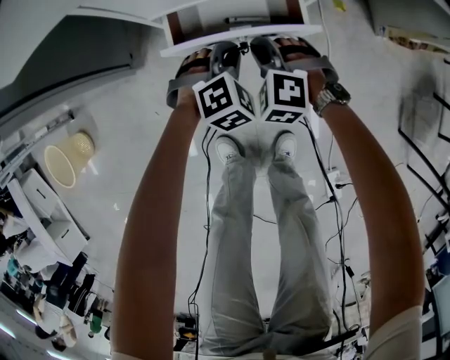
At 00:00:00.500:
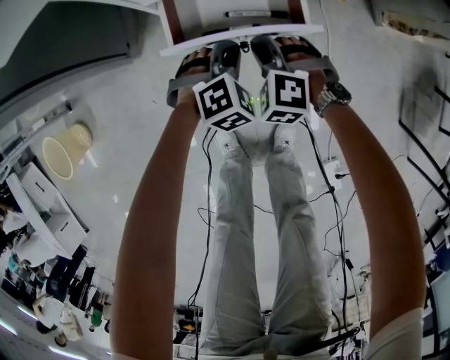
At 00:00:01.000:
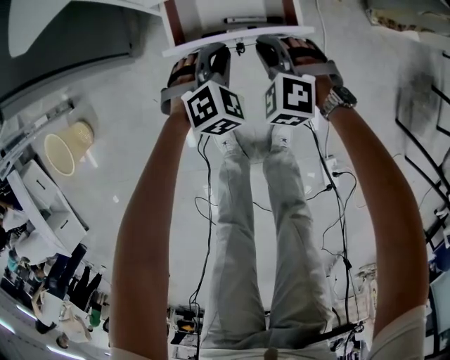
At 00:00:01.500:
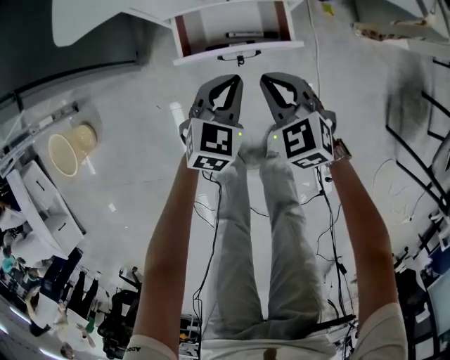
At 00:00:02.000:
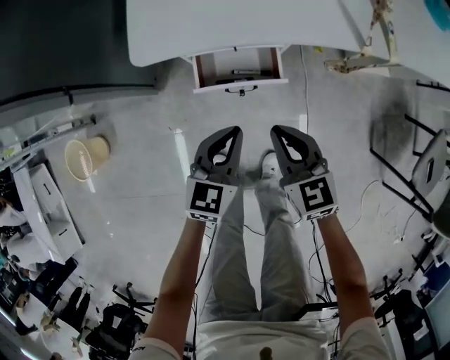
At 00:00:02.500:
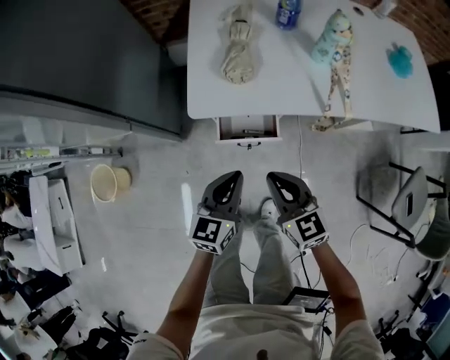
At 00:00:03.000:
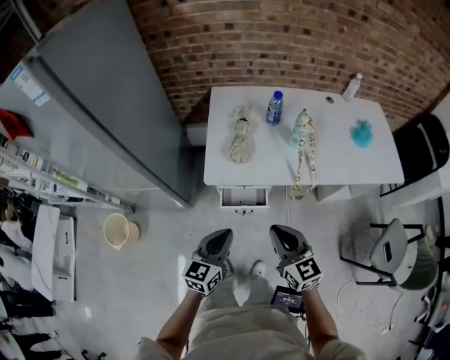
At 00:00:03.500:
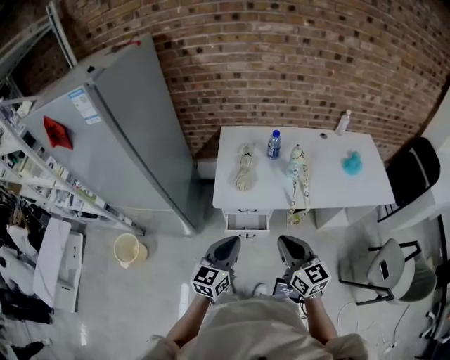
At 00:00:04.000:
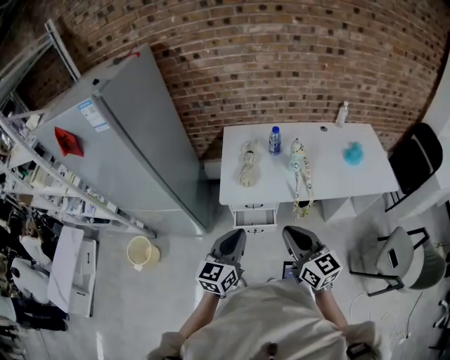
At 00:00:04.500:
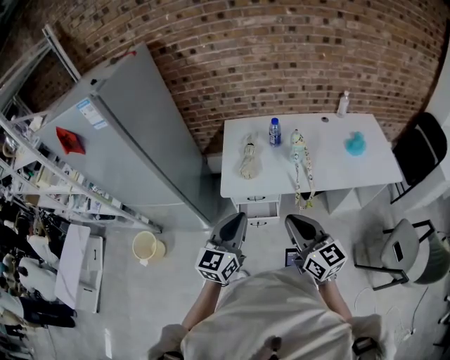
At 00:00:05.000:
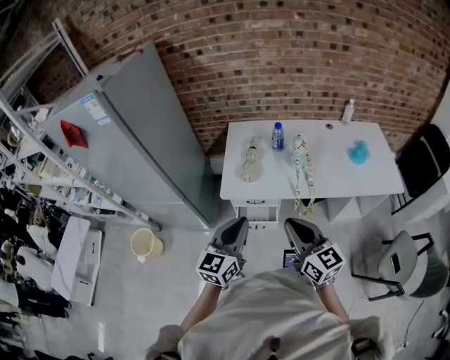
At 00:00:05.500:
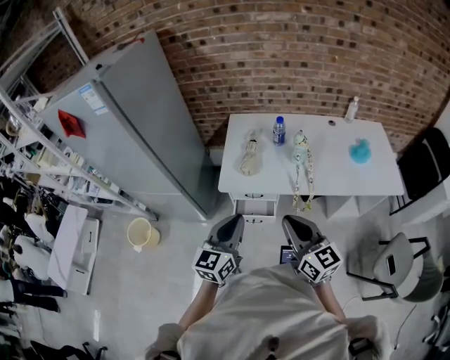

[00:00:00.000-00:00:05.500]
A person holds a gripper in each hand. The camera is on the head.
00:00:00.000 to 00:00:02.000: The left gripper travels upward and backward by roughly 30 cm, and twists some 50 degrees counterclockwise, seen from behind. Meanwhile the right gripper moves upward, approximately 30 cm, and twists about 60 degrees clockwise, seen from behind.
00:00:02.000 to 00:00:03.500: The grippers both shift upward by about 40 cm. The right gripper turns by some 20 degrees.
00:00:03.500 to 00:00:05.500: Both grippers move upward, roughly 5 cm.

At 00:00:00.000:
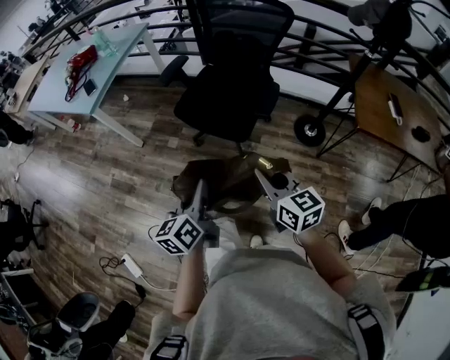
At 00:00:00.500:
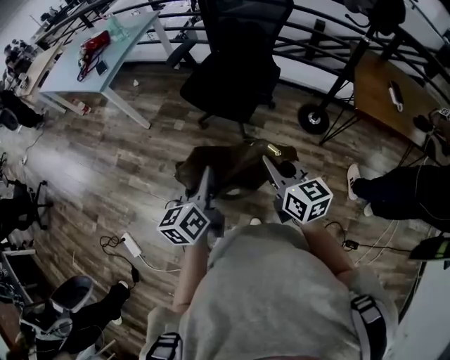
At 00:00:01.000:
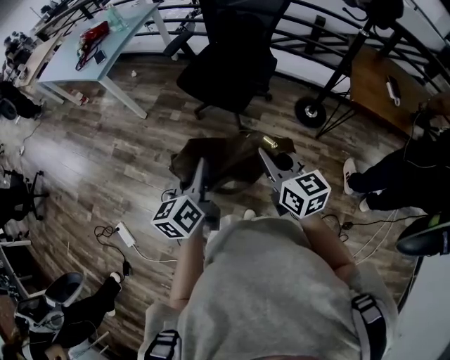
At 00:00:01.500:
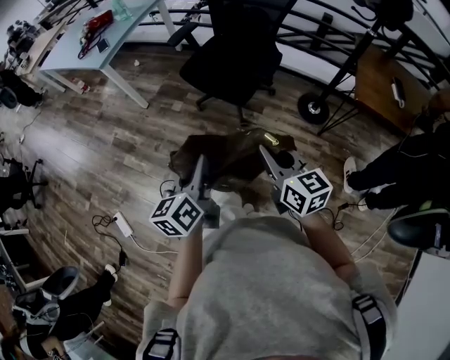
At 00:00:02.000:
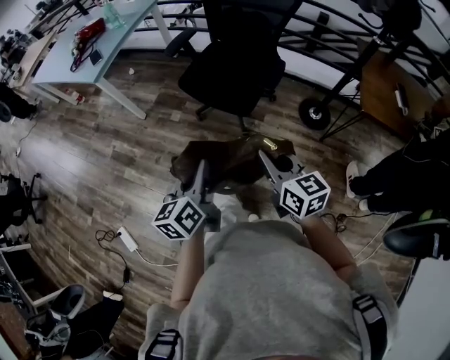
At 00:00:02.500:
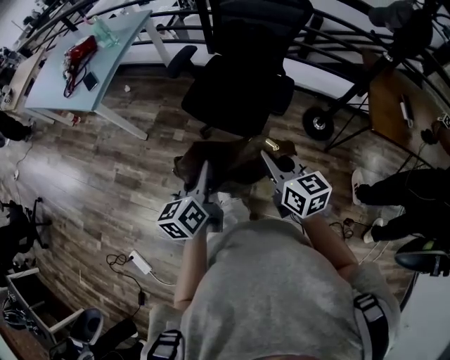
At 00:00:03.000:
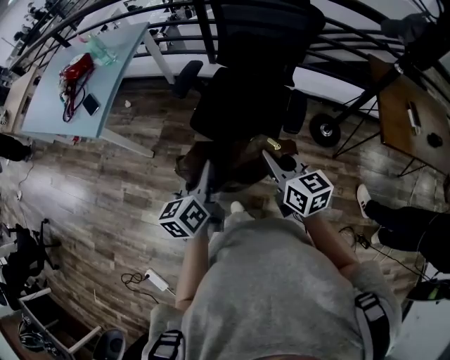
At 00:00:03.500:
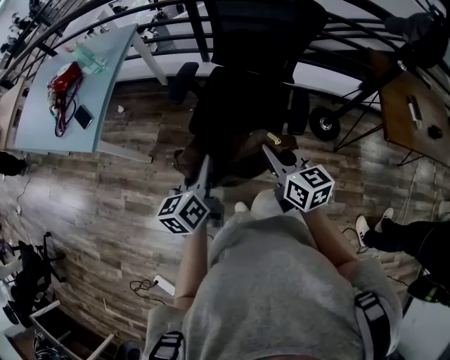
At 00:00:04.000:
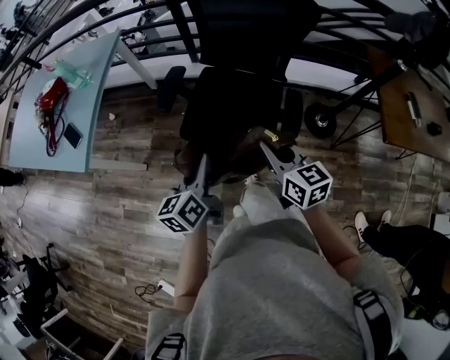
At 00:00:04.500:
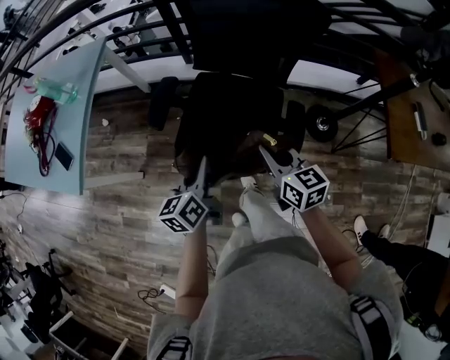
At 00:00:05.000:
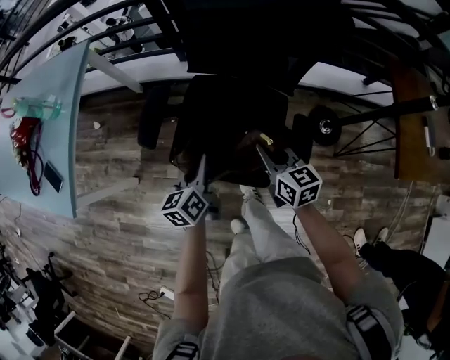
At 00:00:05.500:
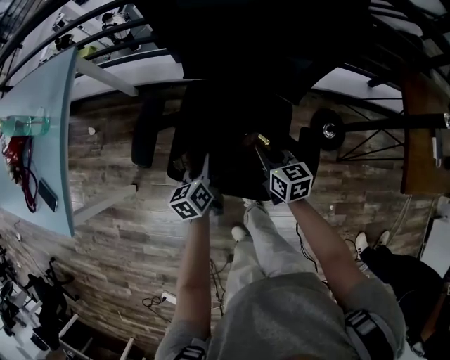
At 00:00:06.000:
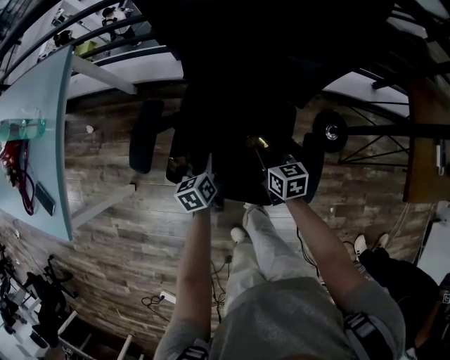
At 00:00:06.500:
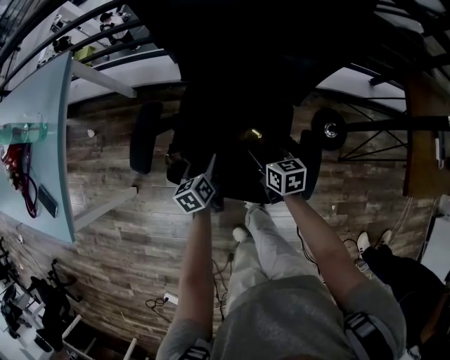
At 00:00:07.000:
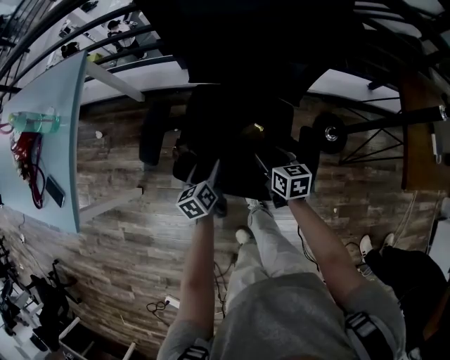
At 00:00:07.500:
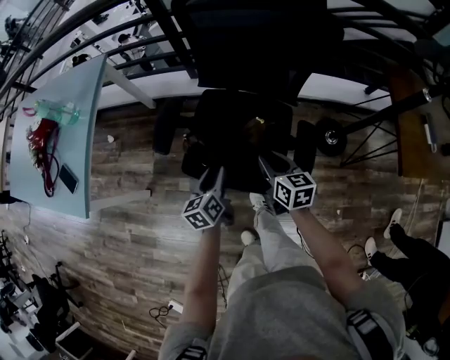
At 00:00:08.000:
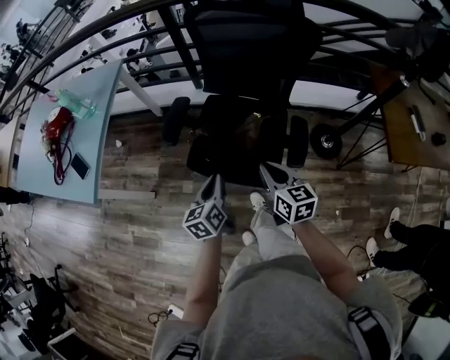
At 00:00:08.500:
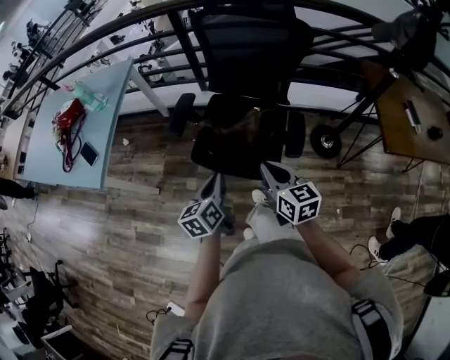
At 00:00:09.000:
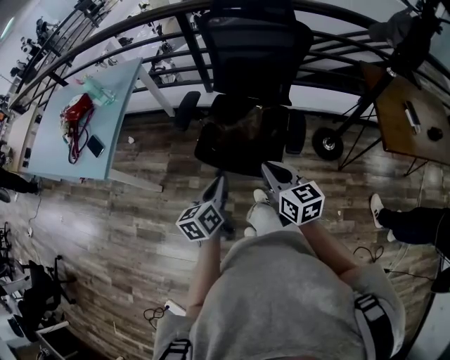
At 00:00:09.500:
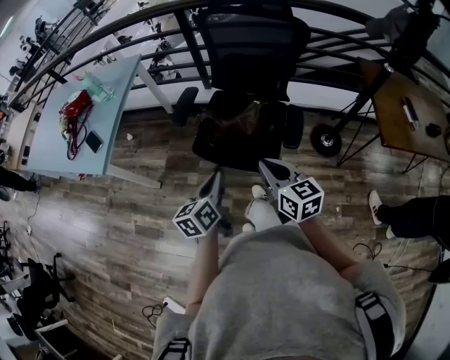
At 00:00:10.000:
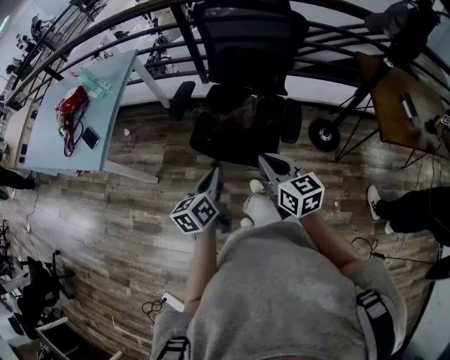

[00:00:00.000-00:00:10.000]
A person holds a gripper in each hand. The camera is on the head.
00:00:00.000 to 00:00:02.000: The grippers both shift backward by approximately 5 cm.
00:00:02.000 to 00:00:04.000: The grippers both shift forward by some 40 cm.
00:00:04.000 to 00:00:06.000: Both grippers travel together downward and forward, about 40 cm. The left gripper changes its angle by roughly 30 degrees. Meanwhile the right gripper changes its angle by approximately 20 degrees.
00:00:06.000 to 00:00:08.000: Both grippers travel together upward and backward, about 30 cm. The left gripper opens, then closes again. The right gripper opens, then closes once more.
00:00:08.000 to 00:00:10.000: Both grippers move backward and upward, about 15 cm.

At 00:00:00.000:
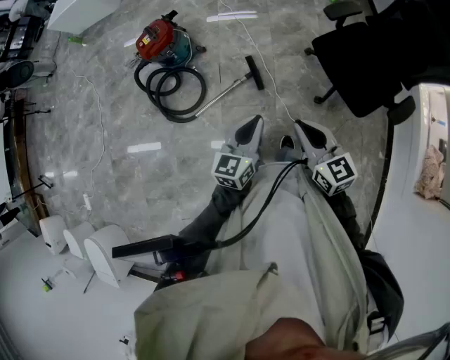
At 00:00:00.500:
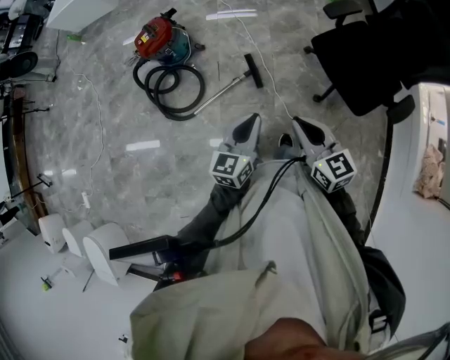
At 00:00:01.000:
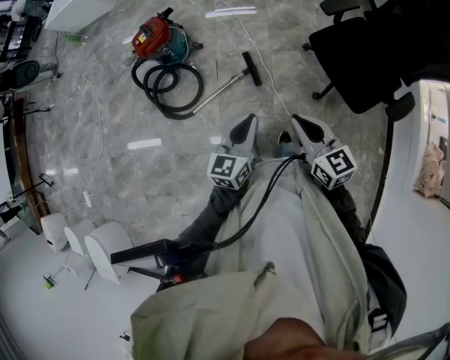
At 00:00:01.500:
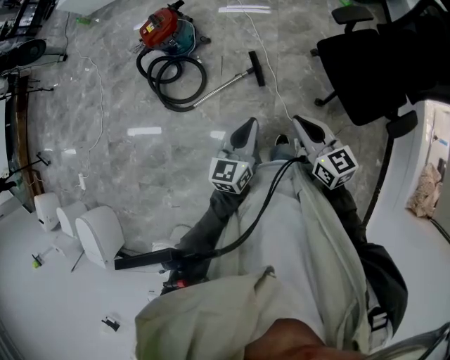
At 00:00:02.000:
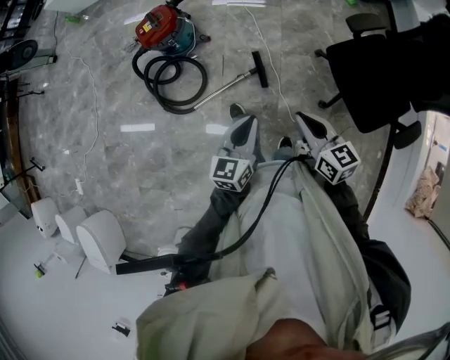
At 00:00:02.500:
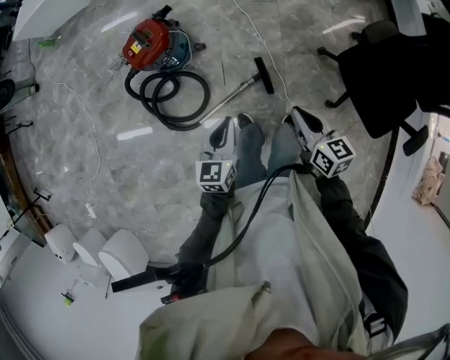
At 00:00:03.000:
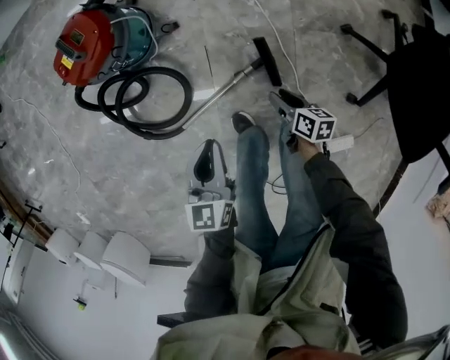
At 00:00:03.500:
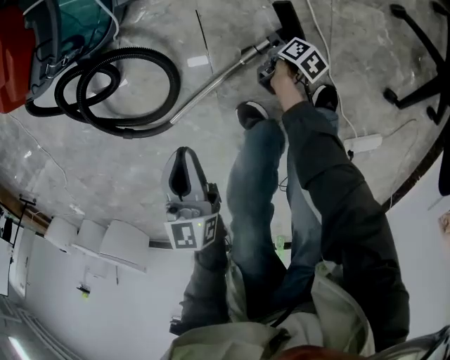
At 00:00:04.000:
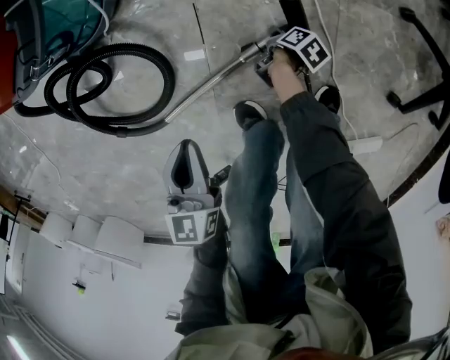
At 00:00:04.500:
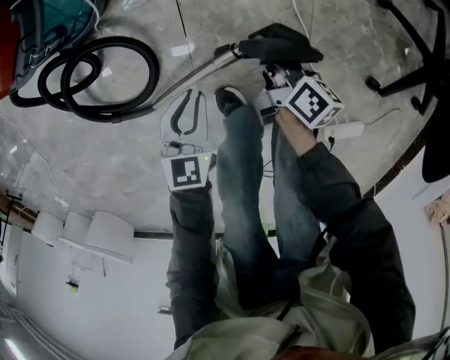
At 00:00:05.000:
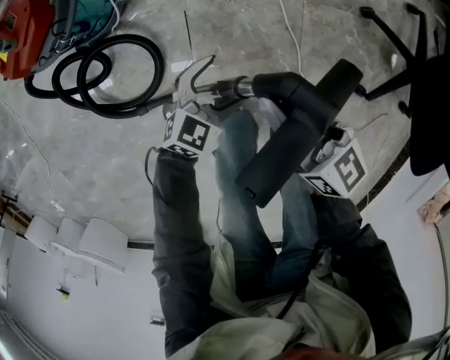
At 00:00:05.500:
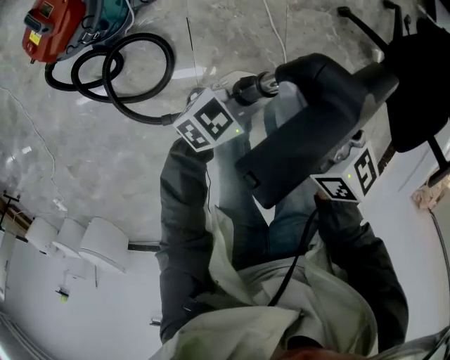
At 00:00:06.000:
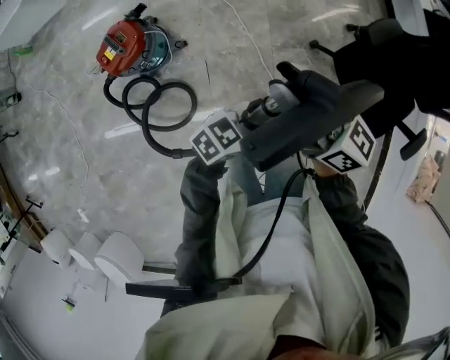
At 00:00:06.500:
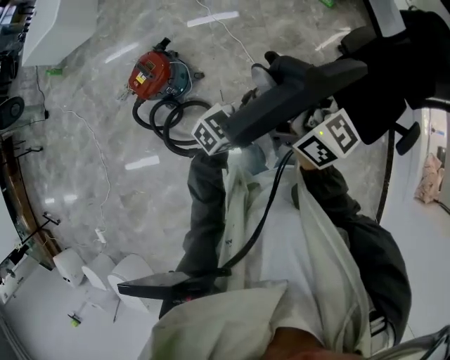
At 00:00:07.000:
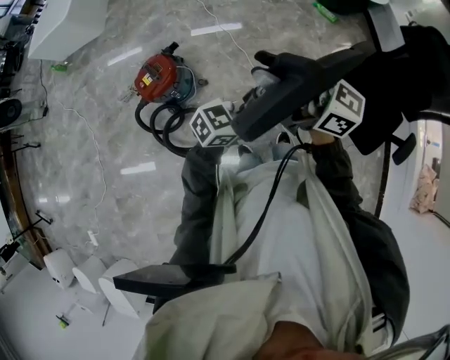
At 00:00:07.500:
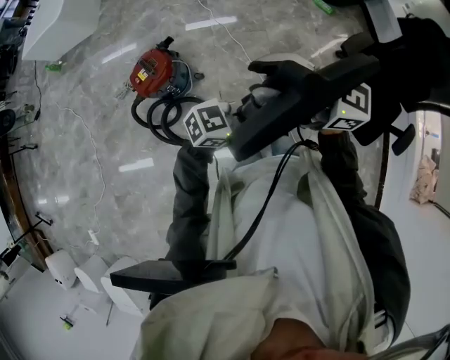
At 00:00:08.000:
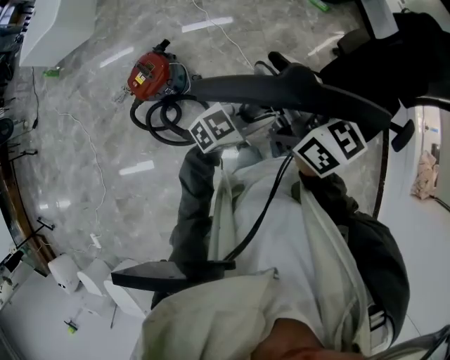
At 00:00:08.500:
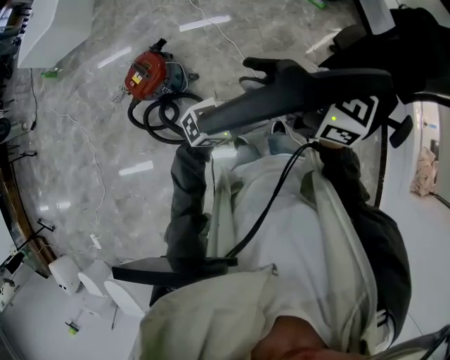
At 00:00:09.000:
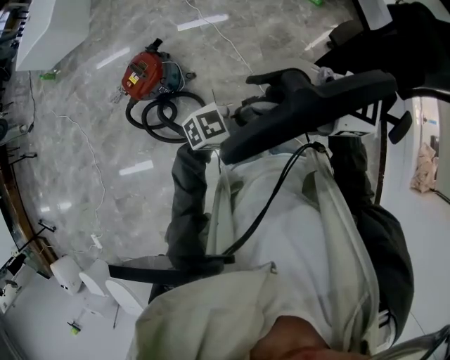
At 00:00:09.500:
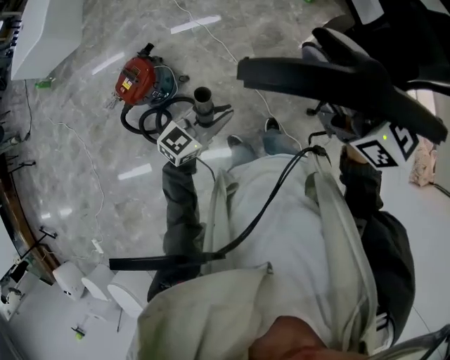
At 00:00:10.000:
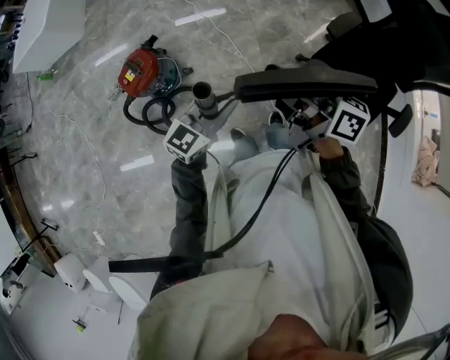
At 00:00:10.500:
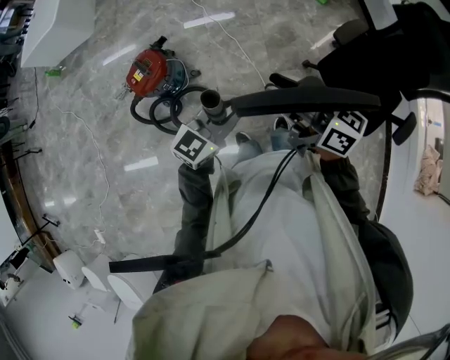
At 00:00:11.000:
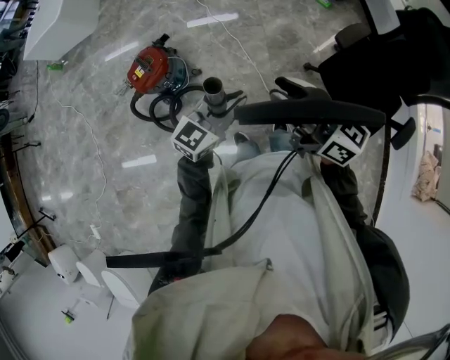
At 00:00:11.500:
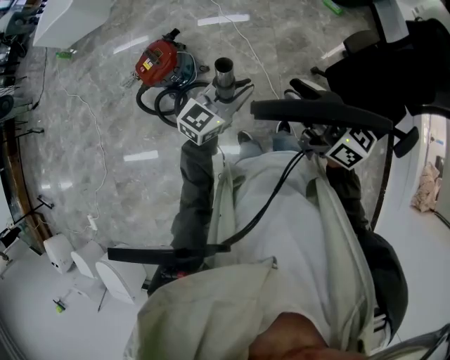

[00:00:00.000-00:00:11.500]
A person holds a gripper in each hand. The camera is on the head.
00:00:00.000 to 00:00:02.000: The right gripper heads forward and downward, covering approximately 10 cm; the left gripper heads forward, covering about 5 cm.
00:00:02.000 to 00:00:04.000: The left gripper shifts roughly 50 cm downward, and rotates some 20 degrees; the right gripper travels downward by about 90 cm, angles its fingers downward, by about 50 degrees, and opens.
00:00:04.000 to 00:00:06.000: The right gripper travels upward by some 90 cm, and tips its fingers upward by approximately 80 degrees, while the left gripper heads upward, covering about 40 cm, swivels roughly 70 degrees, and opens, then closes once more.
00:00:06.000 to 00:00:07.500: The grippers both shift upward by about 20 cm. The right gripper changes its angle by about 40 degrees.
00:00:07.500 to 00:00:09.500: The left gripper moves approximately 5 cm, and changes its angle by about 20 degrees. The right gripper shifts by some 15 cm, and turns by approximately 40 degrees.
00:00:09.500 to 00:00:11.500: The right gripper goes approximately 15 cm downward and backward, and swivels roughly 20 degrees.
